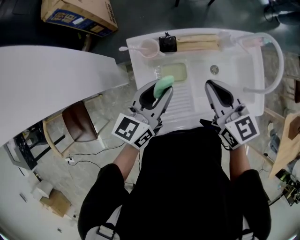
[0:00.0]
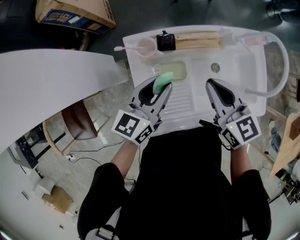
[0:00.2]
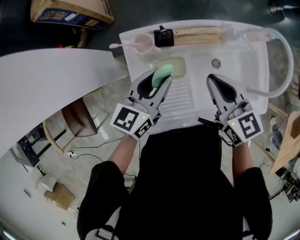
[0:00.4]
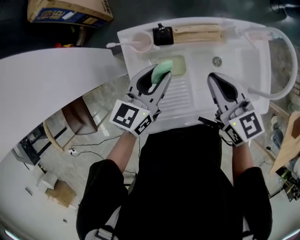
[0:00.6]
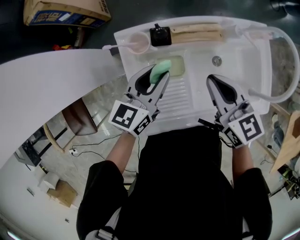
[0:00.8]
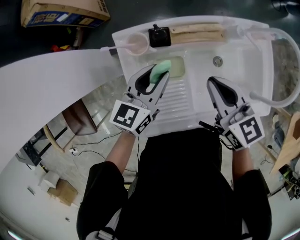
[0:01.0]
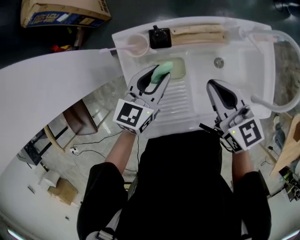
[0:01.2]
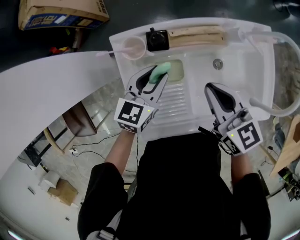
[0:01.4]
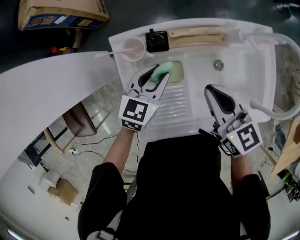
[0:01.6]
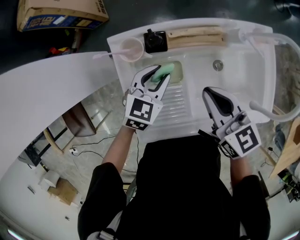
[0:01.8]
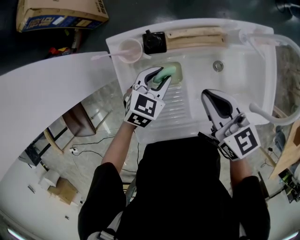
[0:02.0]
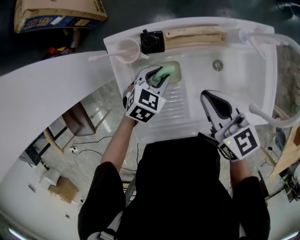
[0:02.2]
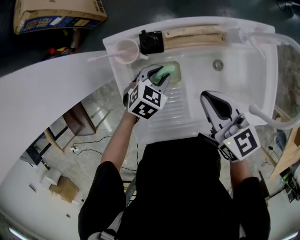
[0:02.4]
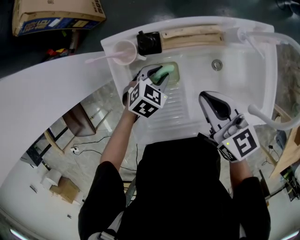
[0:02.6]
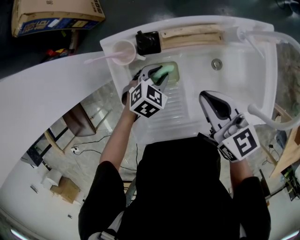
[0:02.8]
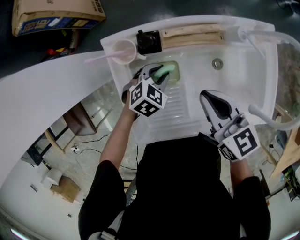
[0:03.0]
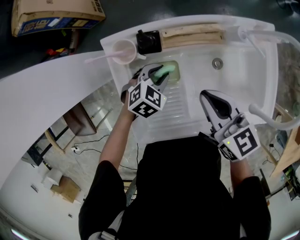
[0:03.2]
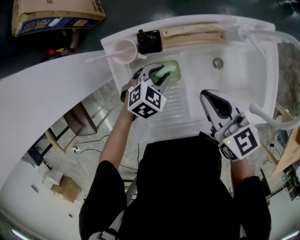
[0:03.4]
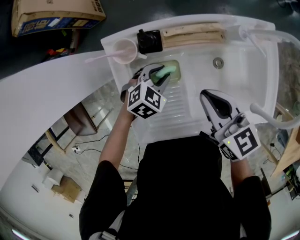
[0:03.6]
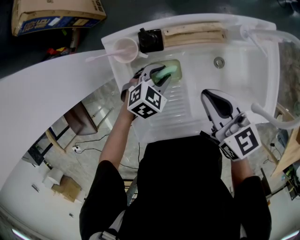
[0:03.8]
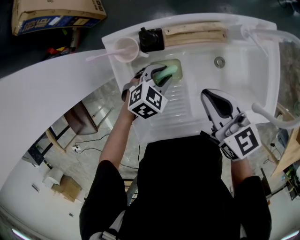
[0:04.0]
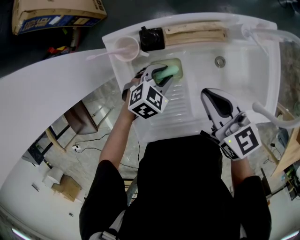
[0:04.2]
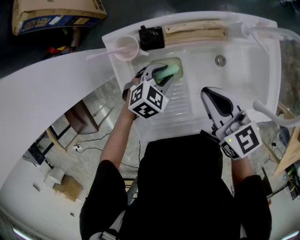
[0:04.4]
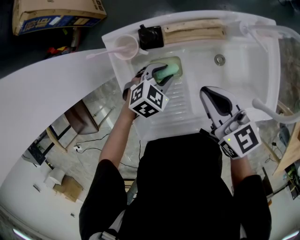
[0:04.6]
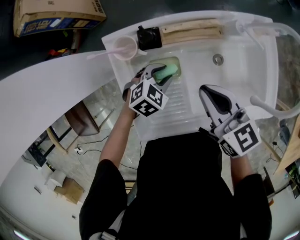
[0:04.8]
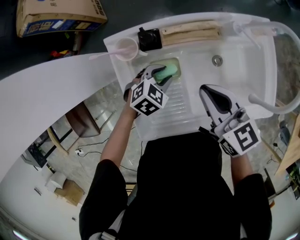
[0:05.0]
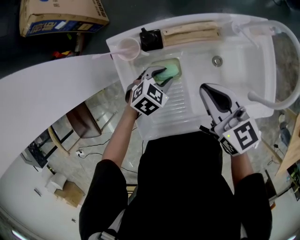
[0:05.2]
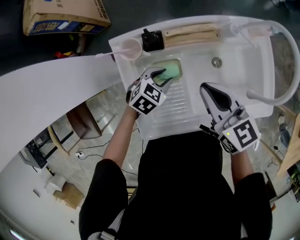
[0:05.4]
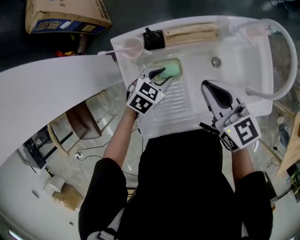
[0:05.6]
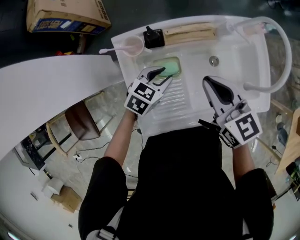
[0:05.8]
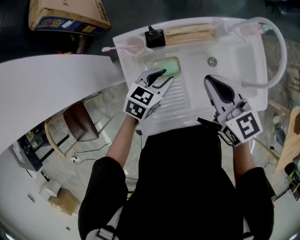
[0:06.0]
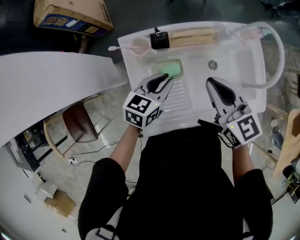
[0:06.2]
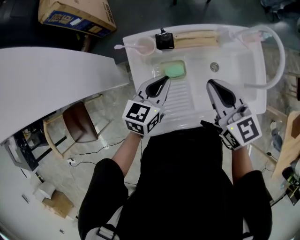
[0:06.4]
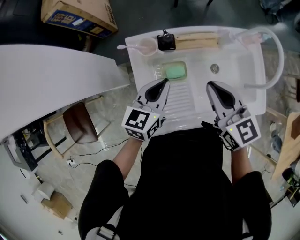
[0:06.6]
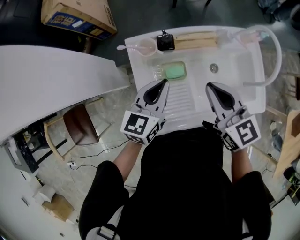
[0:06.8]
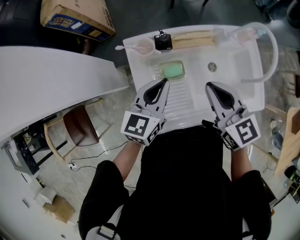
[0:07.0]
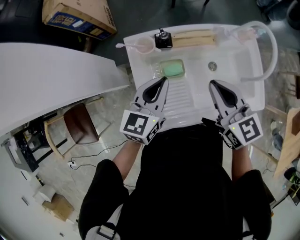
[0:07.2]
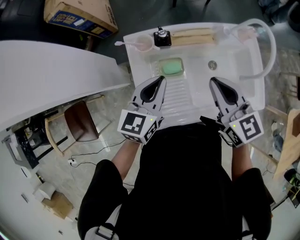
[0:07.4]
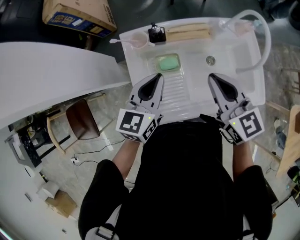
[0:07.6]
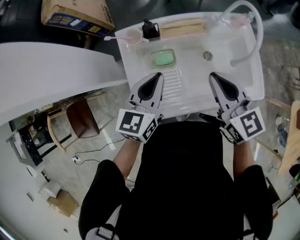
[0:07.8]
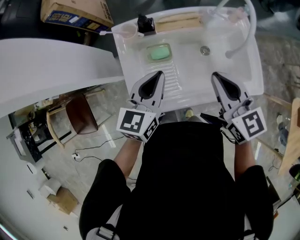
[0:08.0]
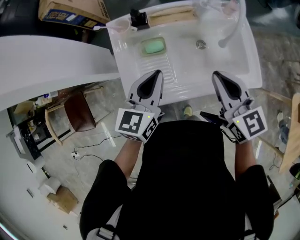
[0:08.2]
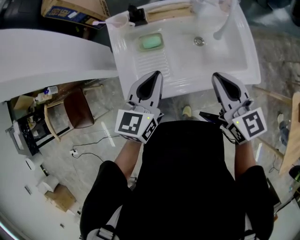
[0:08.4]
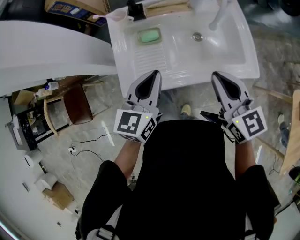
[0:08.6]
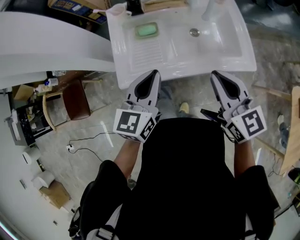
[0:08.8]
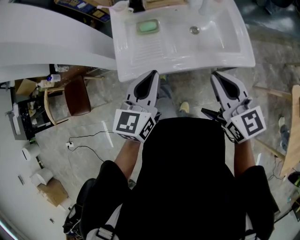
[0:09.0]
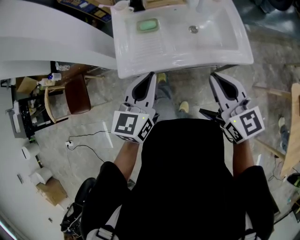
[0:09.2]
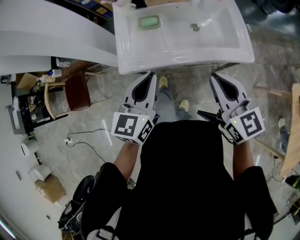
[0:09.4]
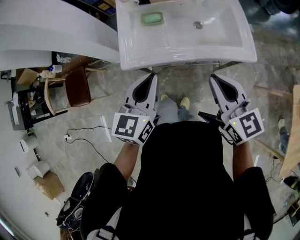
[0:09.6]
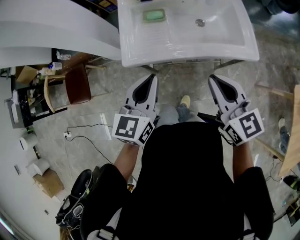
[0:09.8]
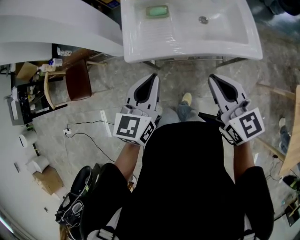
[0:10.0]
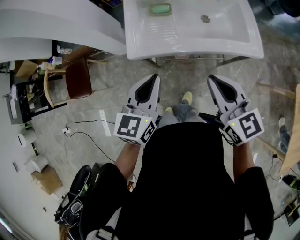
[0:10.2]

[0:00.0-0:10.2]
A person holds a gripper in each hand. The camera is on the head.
0:00.0 to 0:01.4: The right gripper shifts roughly 5 cm downward. The left gripper heads downward and forward, covering about 15 cm, and turns by approximately 20 degrees.
0:01.4 to 0:03.0: The left gripper shifts approximately 10 cm downward, and tips its fingers downward by approximately 30 degrees.
0:03.0 to 0:04.4: The grippers move only a little.
0:04.4 to 0:05.8: Both grippers travel together upward, some 5 cm.
0:05.8 to 0:07.2: The right gripper changes place by roughly 5 cm. Meanwhile the left gripper shifts roughly 15 cm upward, turns by approximately 40 degrees, and closes its fingers.
0:07.2 to 0:08.8: Both grippers move backward and to the right, about 25 cm.
0:08.8 to 0:10.2: Both grippers travel together backward and to the left, approximately 15 cm.

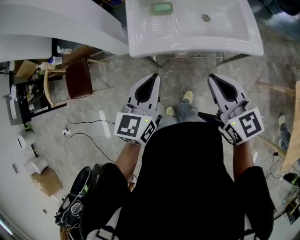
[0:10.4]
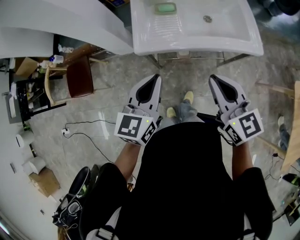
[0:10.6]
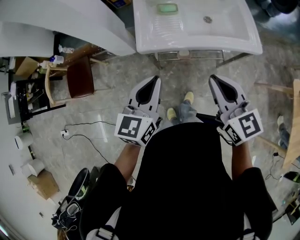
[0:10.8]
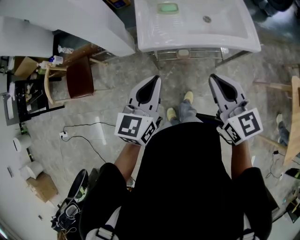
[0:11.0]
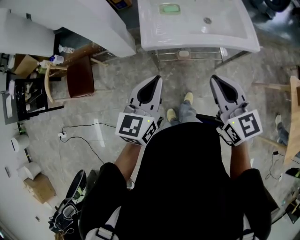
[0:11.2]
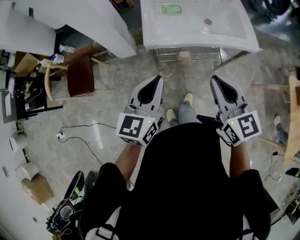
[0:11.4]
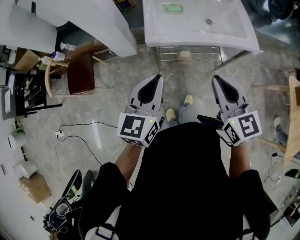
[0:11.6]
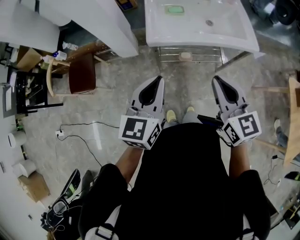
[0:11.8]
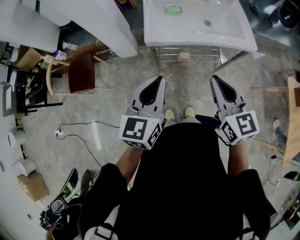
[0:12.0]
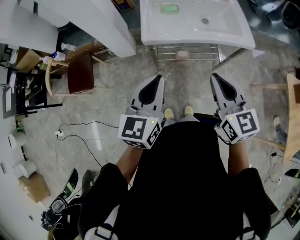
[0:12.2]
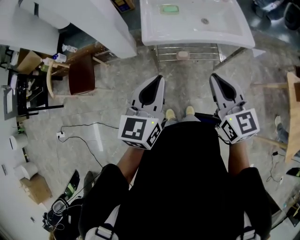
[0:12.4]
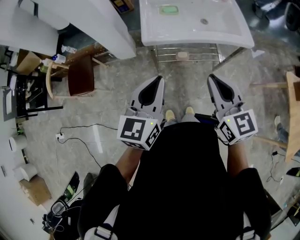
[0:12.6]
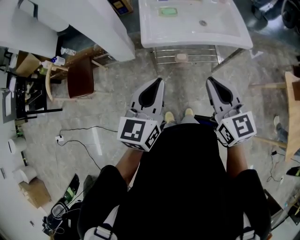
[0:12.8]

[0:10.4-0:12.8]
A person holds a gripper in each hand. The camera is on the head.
0:10.4 to 0:11.6: Both grippers move backward and to the left, approximately 10 cm.
0:11.6 to 0:12.8: The grippers move only a little.

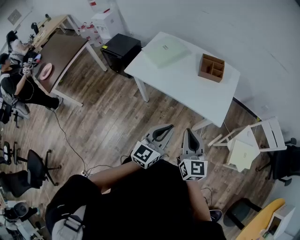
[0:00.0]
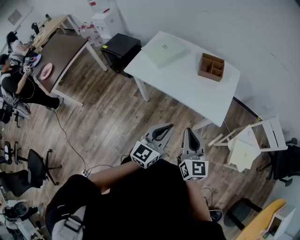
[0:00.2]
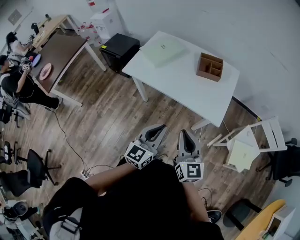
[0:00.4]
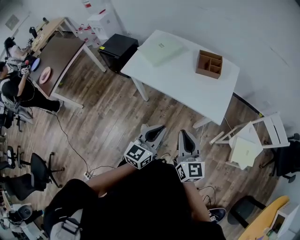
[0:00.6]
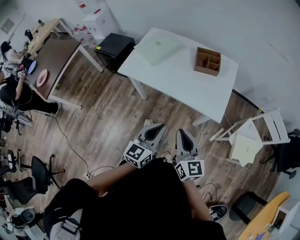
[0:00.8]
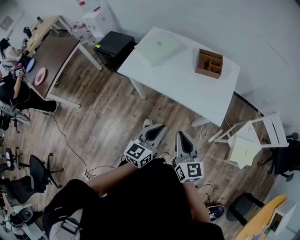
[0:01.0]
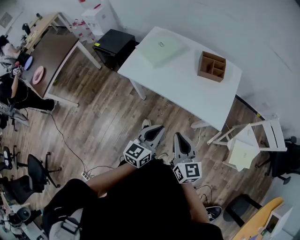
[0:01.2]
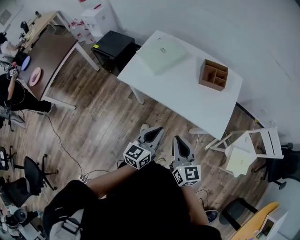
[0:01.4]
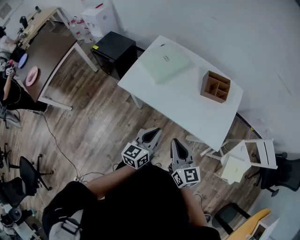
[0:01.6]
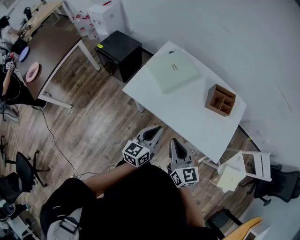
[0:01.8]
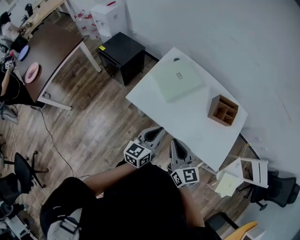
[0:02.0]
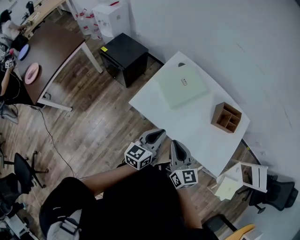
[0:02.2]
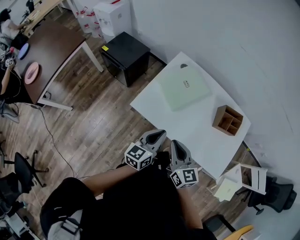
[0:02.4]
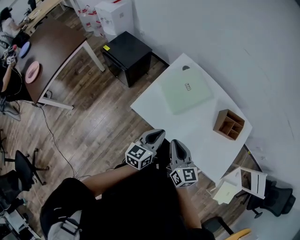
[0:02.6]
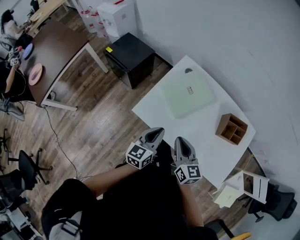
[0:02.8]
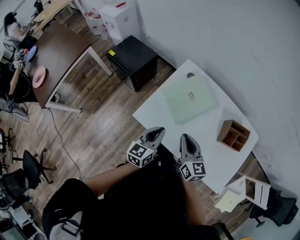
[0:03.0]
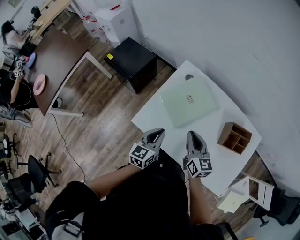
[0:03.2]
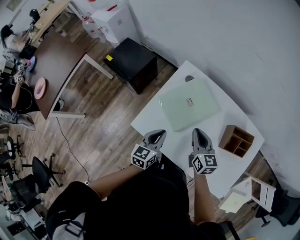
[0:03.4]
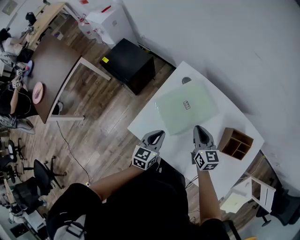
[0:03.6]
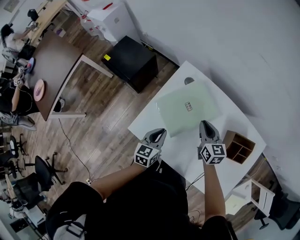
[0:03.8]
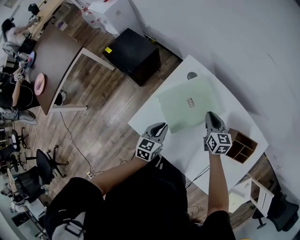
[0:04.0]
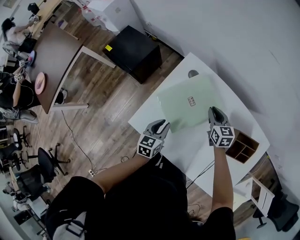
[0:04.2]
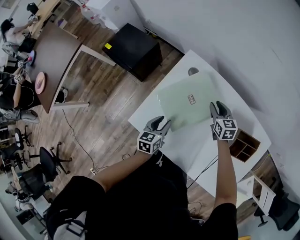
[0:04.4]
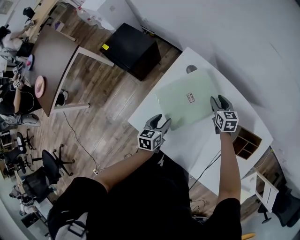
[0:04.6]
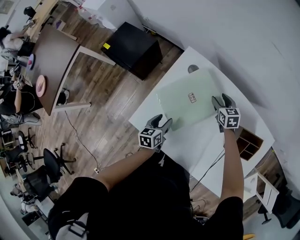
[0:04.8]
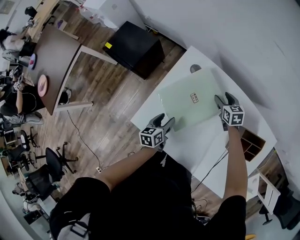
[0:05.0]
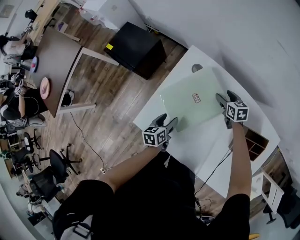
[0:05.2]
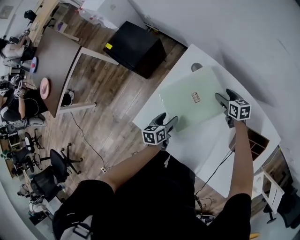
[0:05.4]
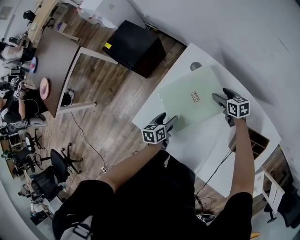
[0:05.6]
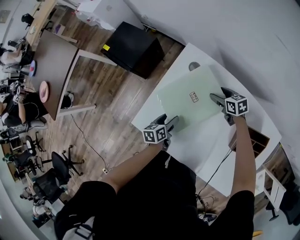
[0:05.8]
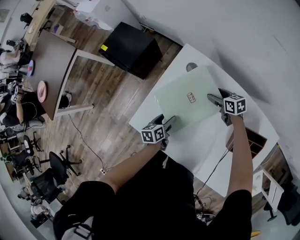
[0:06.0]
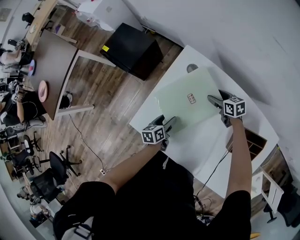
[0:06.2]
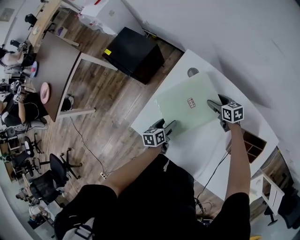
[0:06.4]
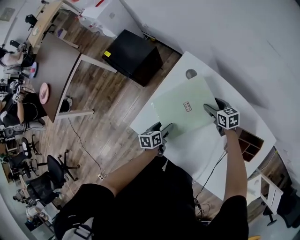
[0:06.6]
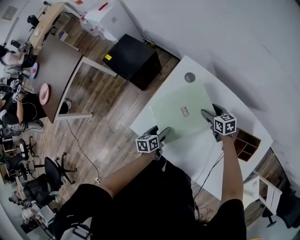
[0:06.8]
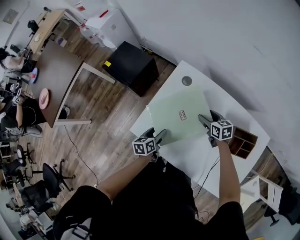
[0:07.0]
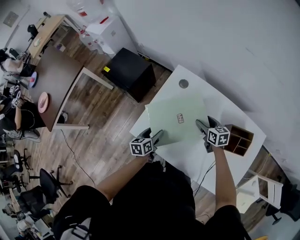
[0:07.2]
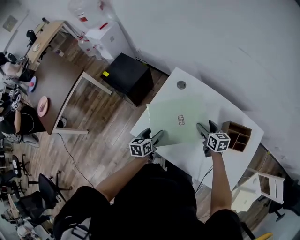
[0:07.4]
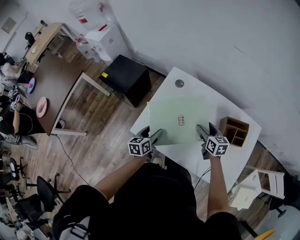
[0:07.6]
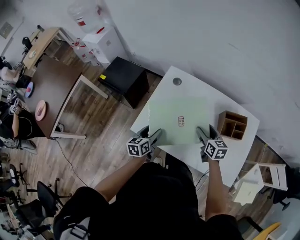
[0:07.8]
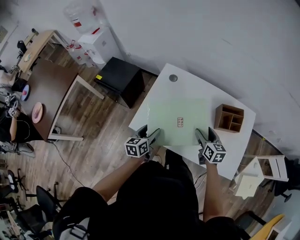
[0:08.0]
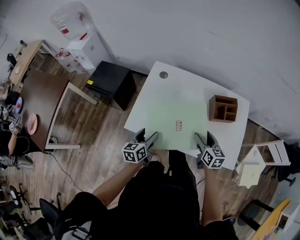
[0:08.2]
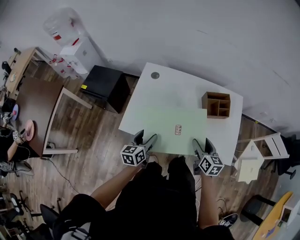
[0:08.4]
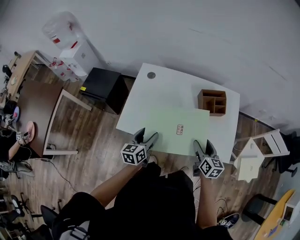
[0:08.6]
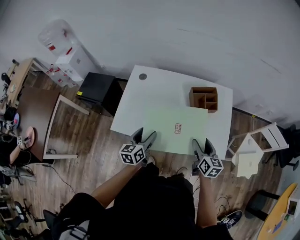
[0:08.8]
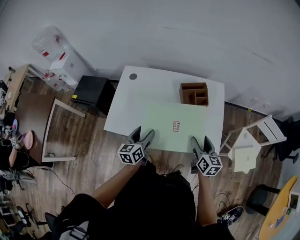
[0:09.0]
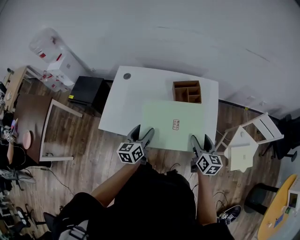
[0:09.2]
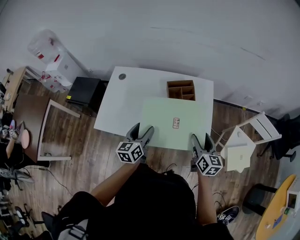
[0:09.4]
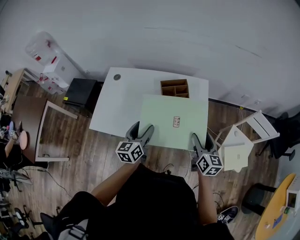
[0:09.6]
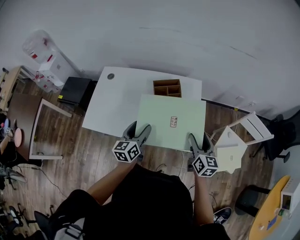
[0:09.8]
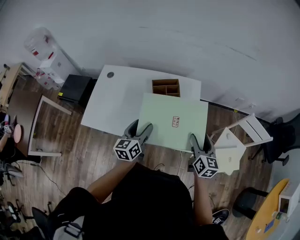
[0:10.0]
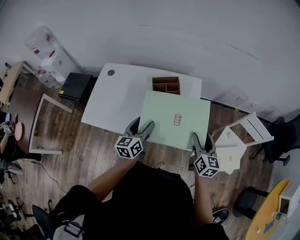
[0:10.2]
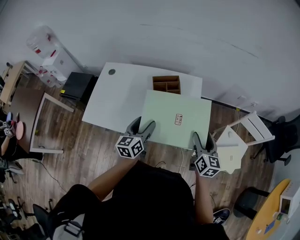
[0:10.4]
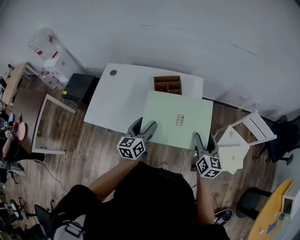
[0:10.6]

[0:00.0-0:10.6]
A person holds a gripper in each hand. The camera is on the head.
0:00.0 to 0:01.6: The left gripper is displaced forward, to the left and downward by some 20 cm, and rotates some 20 degrees. Meanwhile the right gripper heads forward and to the left, covering approximately 15 cm.
0:01.6 to 0:03.0: The left gripper moves forward and to the left, roughly 30 cm, while the right gripper moves forward, some 30 cm.
0:03.0 to 0:04.6: The left gripper moves downward and forward, some 20 cm, rotates some 20 degrees, and opens up, while the right gripper moves forward, downward and to the right, approximately 40 cm, rotates approximately 30 degrees, and opens up.
0:04.6 to 0:06.0: The two grippers go some 5 cm downward. The right gripper rotates some 30 degrees, and opens up.
0:06.0 to 0:07.6: The left gripper heads upward and backward, covering approximately 15 cm, while the right gripper shifts some 25 cm backward and upward, and swivels approximately 30 degrees.
0:07.6 to 0:09.0: The left gripper heads to the right, backward and upward, covering roughly 25 cm, and swivels roughly 20 degrees; the right gripper moves backward and to the right, about 35 cm, and swivels some 30 degrees.
0:09.0 to 0:10.6: The two grippers go about 20 cm to the right.
